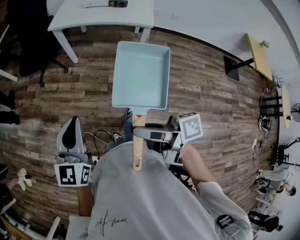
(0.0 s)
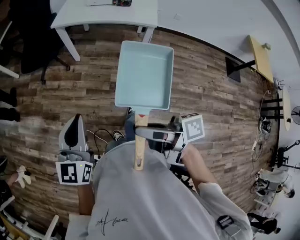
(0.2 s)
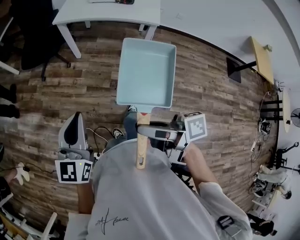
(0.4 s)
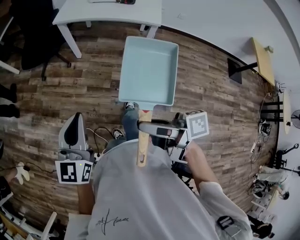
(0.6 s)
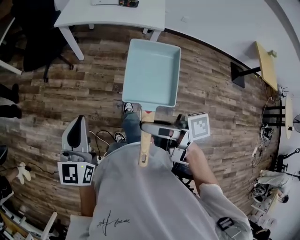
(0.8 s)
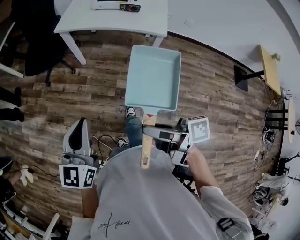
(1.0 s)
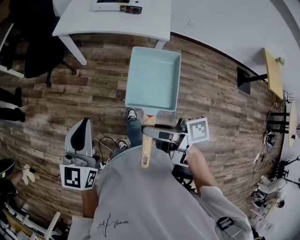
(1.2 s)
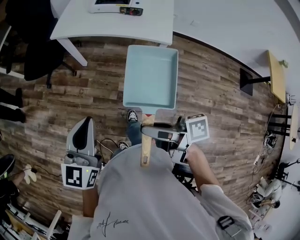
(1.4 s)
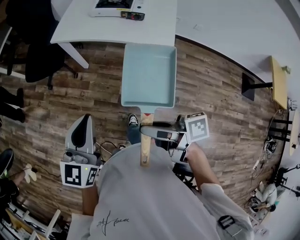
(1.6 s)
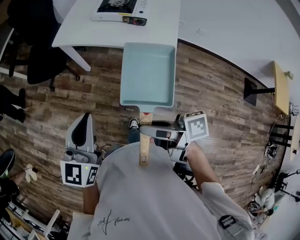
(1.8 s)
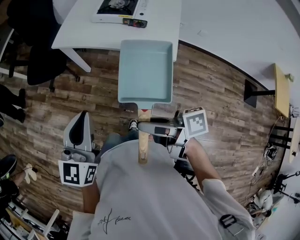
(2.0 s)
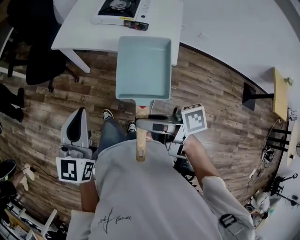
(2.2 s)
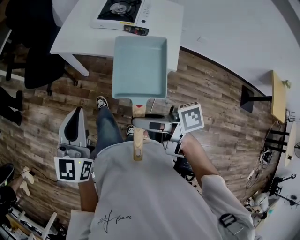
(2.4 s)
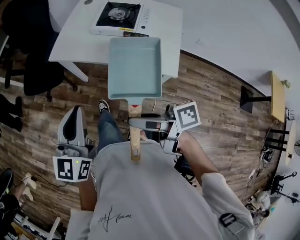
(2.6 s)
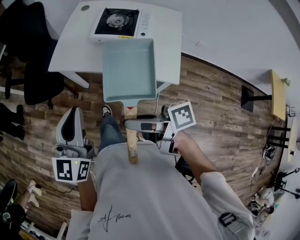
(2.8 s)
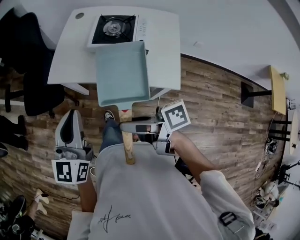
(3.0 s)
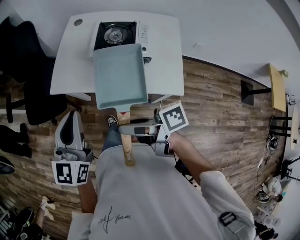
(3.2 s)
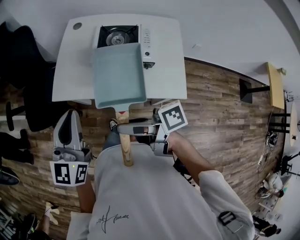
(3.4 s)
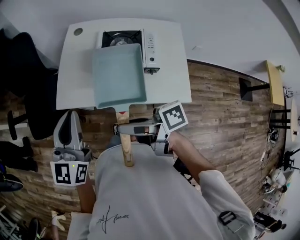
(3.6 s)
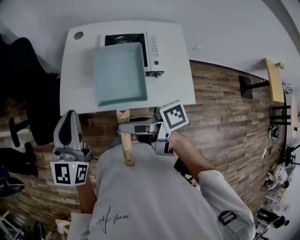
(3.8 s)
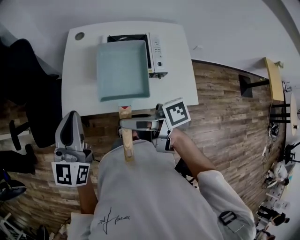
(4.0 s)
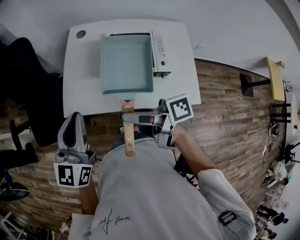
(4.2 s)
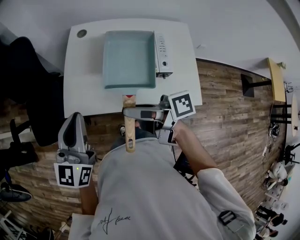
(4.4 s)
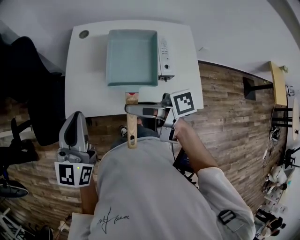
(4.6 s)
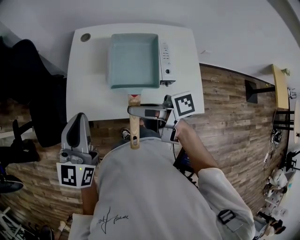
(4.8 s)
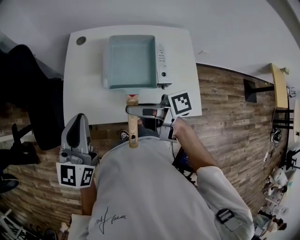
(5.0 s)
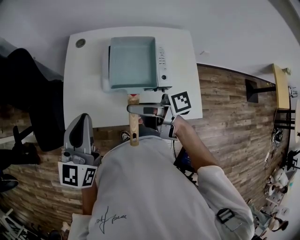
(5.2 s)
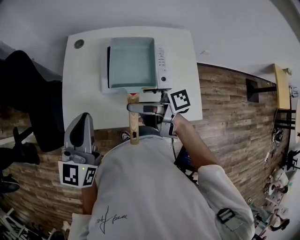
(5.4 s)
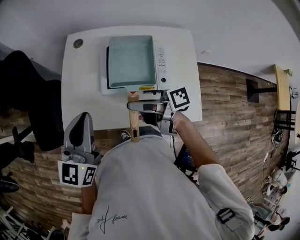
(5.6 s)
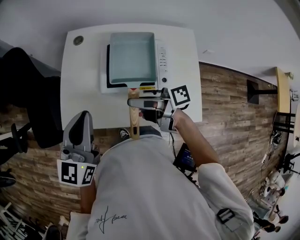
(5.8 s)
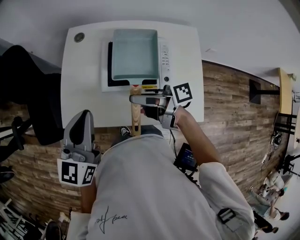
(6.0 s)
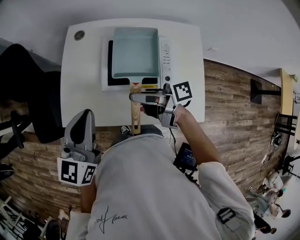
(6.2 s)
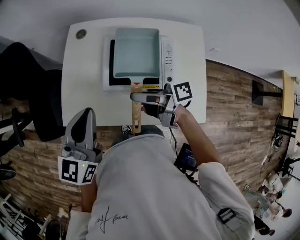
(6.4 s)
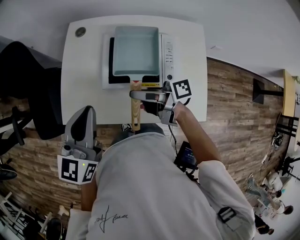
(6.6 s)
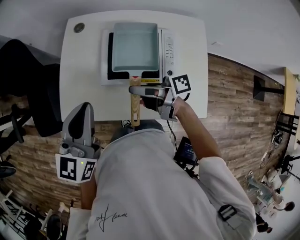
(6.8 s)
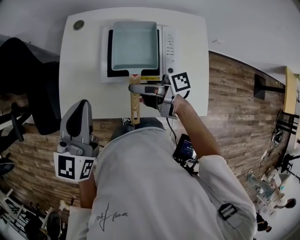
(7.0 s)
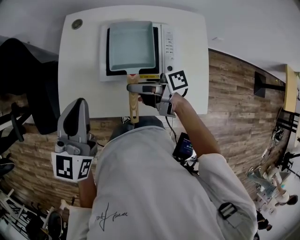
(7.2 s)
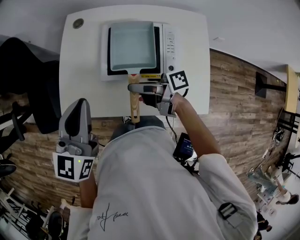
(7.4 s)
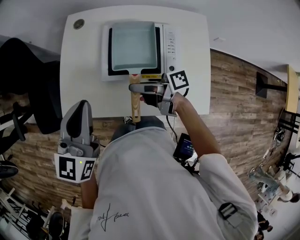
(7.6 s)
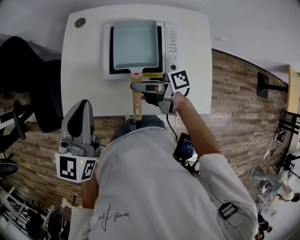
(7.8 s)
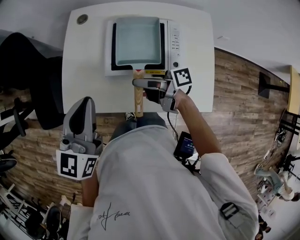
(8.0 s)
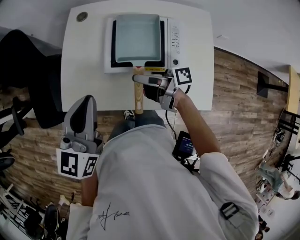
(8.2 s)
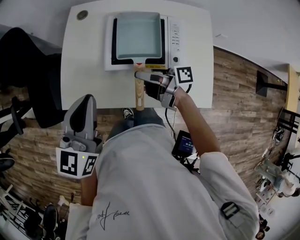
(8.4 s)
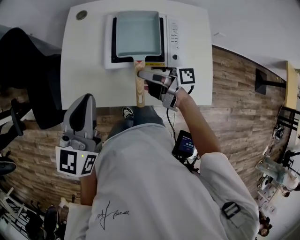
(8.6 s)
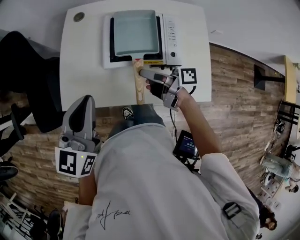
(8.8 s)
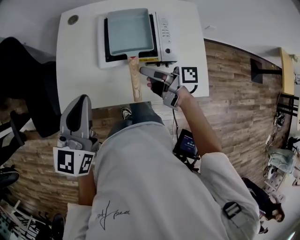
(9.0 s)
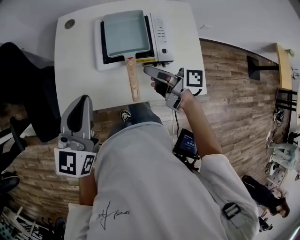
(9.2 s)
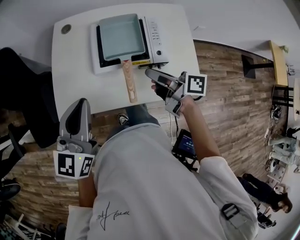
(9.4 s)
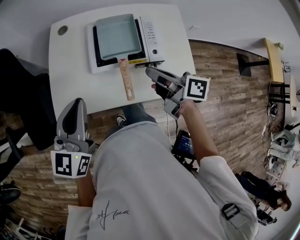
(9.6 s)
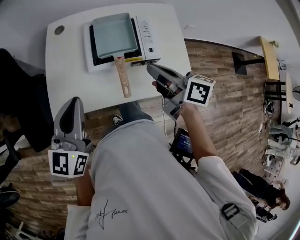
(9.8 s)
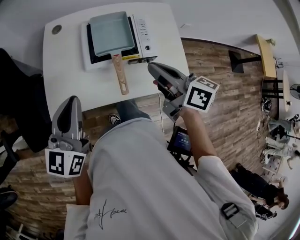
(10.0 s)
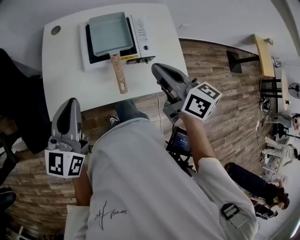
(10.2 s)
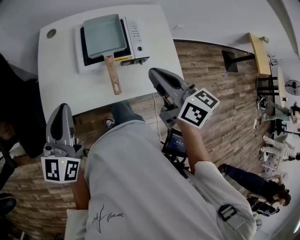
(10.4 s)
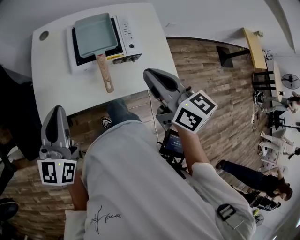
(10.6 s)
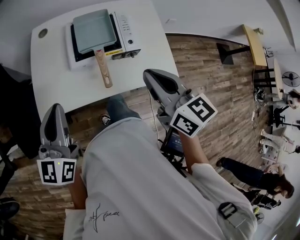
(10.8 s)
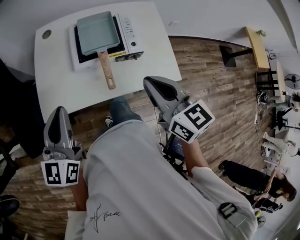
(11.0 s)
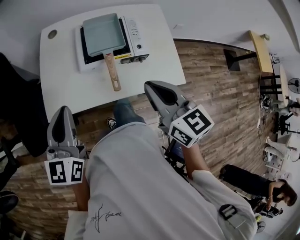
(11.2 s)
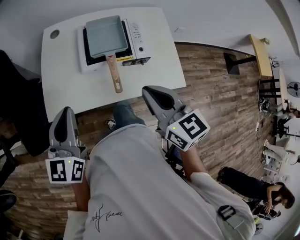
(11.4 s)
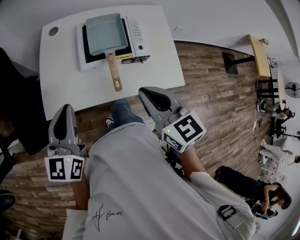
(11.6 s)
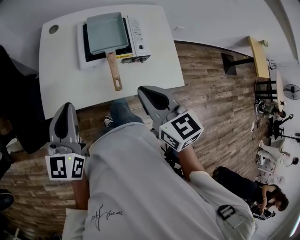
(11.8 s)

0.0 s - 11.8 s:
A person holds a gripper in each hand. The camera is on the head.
0.0 s - 1.4 s: Both grippers move forward and to the right, approximately 20 cm.
1.4 s - 3.0 s: The grippers both shift forward by some 30 cm.
3.0 s - 4.4 s: Both grippers travel together forward, roughly 20 cm.
4.4 s - 6.0 s: The right gripper goes about 20 cm to the right, forward and downward, while the left gripper goes about 15 cm to the right and forward.
6.0 s - 7.4 s: The right gripper goes about 5 cm downward.
7.4 s - 8.8 s: There are only small adjustments of the grippers.
8.8 s - 10.4 s: The right gripper travels upward and backward by some 20 cm, turns by some 60 degrees, and closes.
10.4 s - 11.8 s: The right gripper goes roughly 5 cm to the left, and turns by roughly 20 degrees.

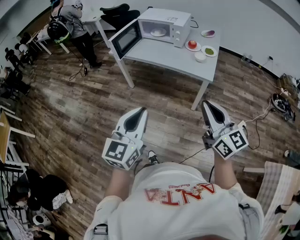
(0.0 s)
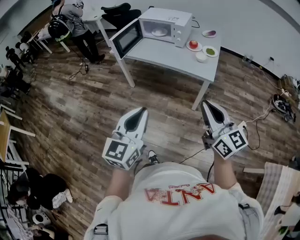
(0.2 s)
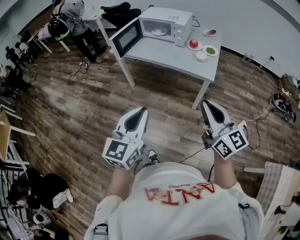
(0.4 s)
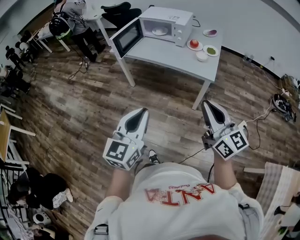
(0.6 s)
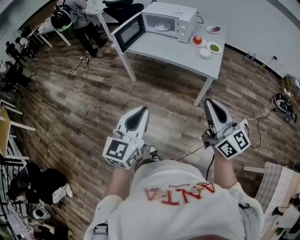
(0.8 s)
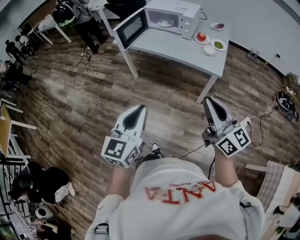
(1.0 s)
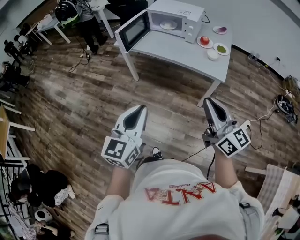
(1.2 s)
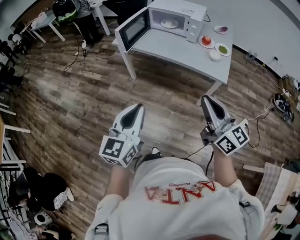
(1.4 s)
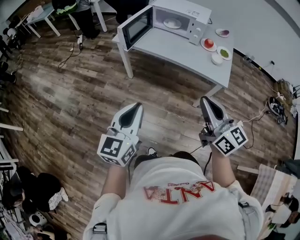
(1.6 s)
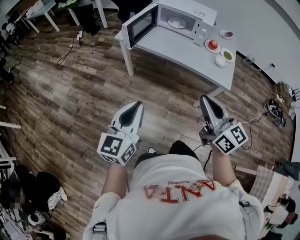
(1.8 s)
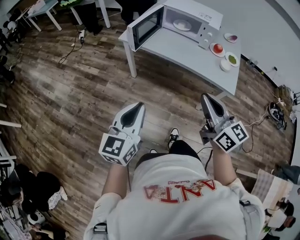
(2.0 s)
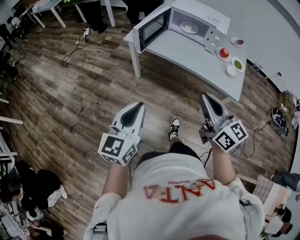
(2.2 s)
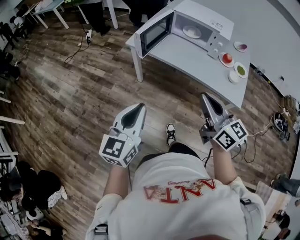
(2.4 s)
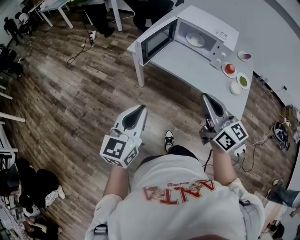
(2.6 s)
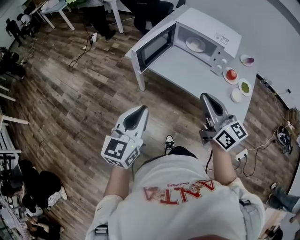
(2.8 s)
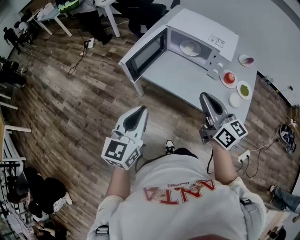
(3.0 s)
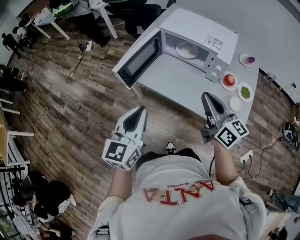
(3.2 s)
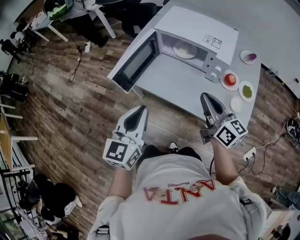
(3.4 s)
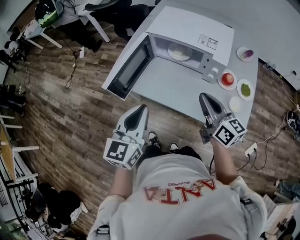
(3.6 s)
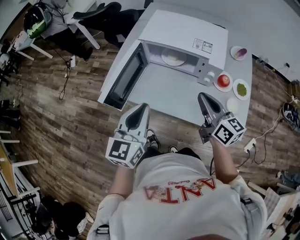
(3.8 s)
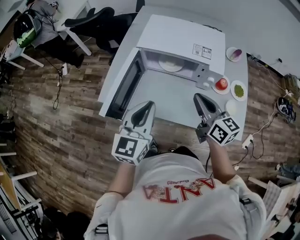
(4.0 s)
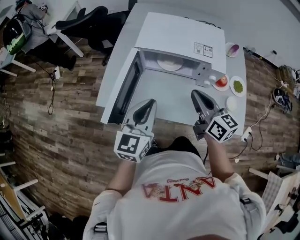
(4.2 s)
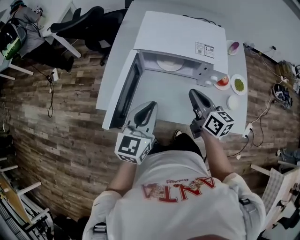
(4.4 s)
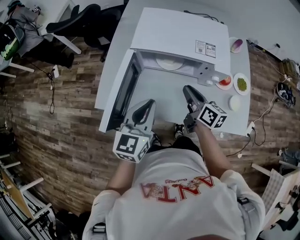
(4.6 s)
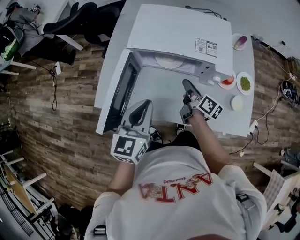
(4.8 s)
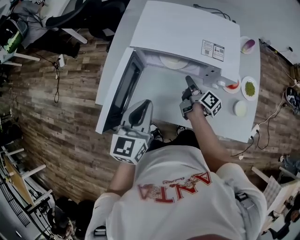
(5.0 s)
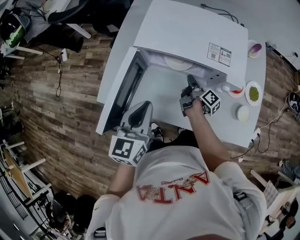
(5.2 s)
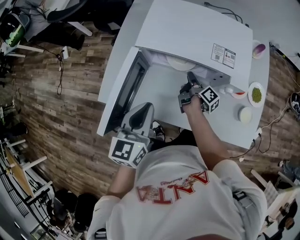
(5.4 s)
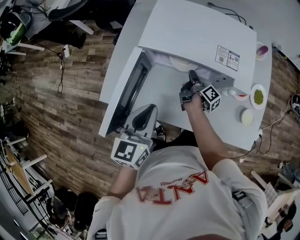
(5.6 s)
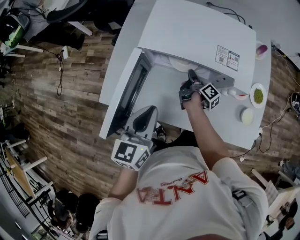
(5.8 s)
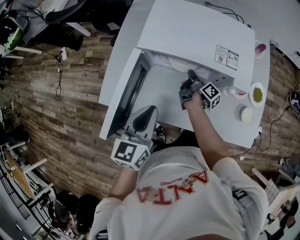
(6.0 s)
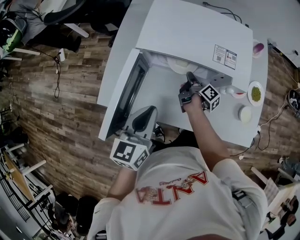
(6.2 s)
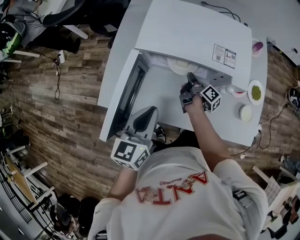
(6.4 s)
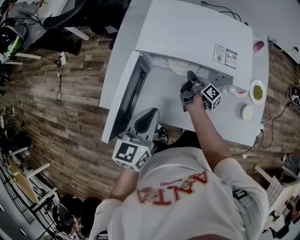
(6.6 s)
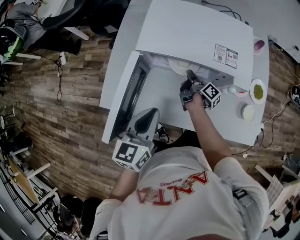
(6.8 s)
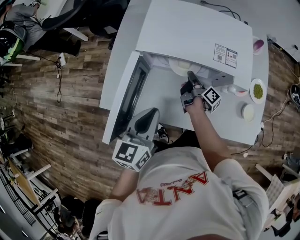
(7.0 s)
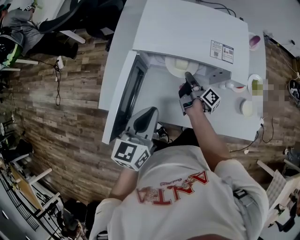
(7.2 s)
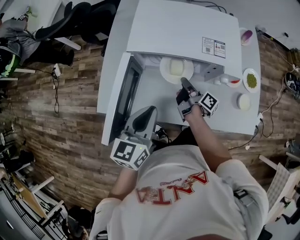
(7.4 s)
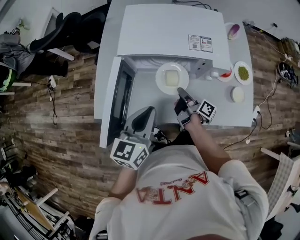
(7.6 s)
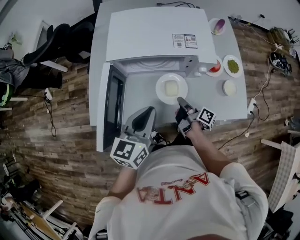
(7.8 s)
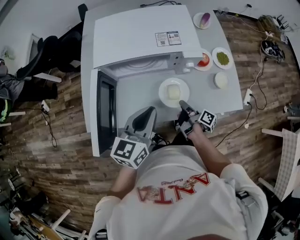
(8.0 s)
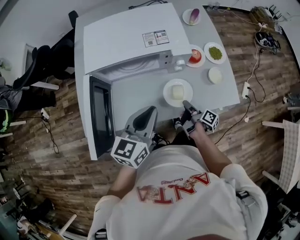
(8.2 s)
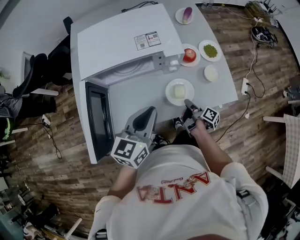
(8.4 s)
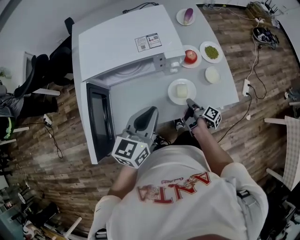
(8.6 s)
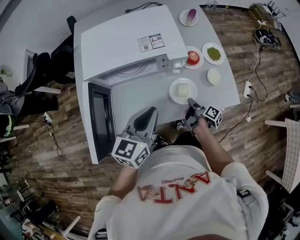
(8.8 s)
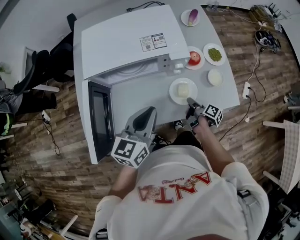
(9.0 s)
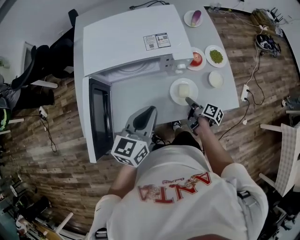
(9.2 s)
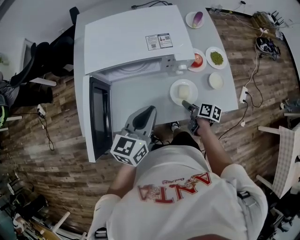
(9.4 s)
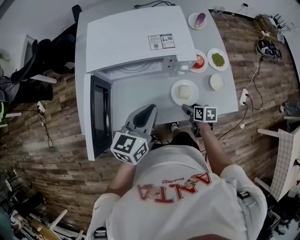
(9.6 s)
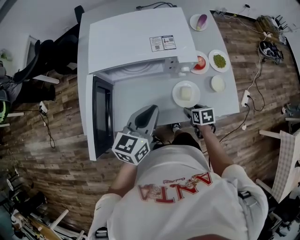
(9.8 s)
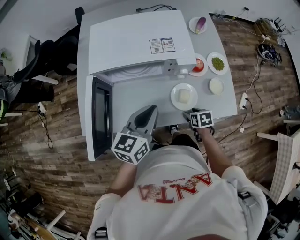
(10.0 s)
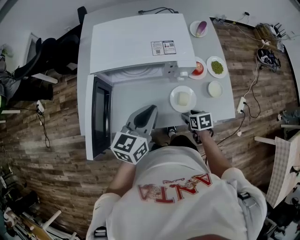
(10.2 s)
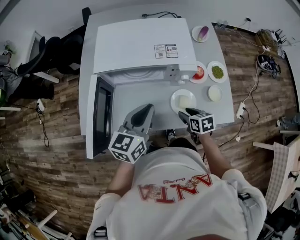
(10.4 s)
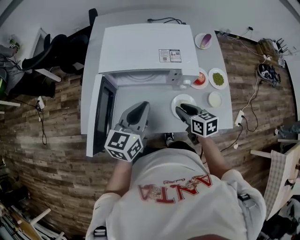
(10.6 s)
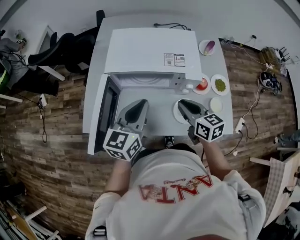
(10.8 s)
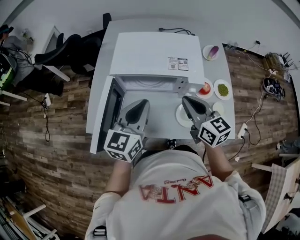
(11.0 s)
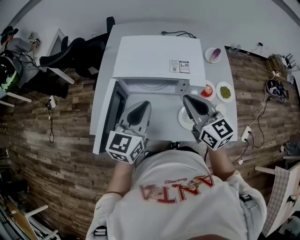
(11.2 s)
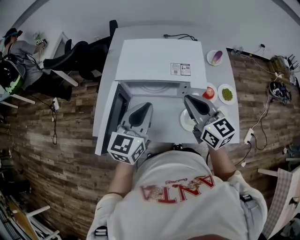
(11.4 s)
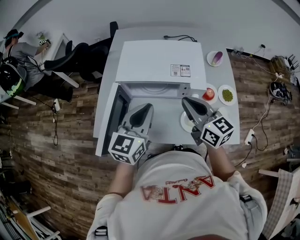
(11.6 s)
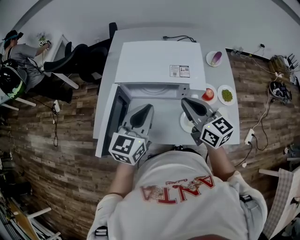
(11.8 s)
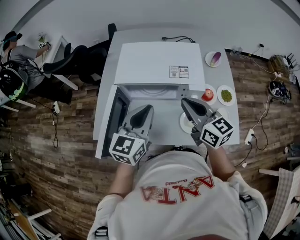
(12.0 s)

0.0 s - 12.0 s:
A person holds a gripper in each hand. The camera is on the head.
0.0 s - 1.6 s: The two grippers go some 20 cm to the left and forward.
1.6 s - 3.0 s: The two grippers go roughly 30 cm forward.
3.0 s - 4.4 s: The left gripper moves forward, about 30 cm, and turns by roughly 20 degrees. The right gripper moves forward and downward, some 25 cm, and turns by about 30 degrees.
4.4 s - 6.0 s: The right gripper is displaced downward and forward by some 25 cm, and rotates around the line of its fingers by roughly 60 degrees, clockwise from behind. The left gripper moves roughly 5 cm.
6.0 s - 7.6 s: The right gripper moves backward, roughly 10 cm.
7.6 s - 9.0 s: The left gripper moves to the right, about 10 cm; the right gripper moves to the right, about 20 cm, and swivels approximately 20 degrees.
9.0 s - 10.4 s: The right gripper shifts about 10 cm upward and to the left, rolls counterclockwise, seen from behind, by some 70 degrees, and opens its fingers.
10.4 s - 12.0 s: The left gripper heads upward, covering about 10 cm, while the right gripper travels upward by approximately 25 cm, tilts its fingers roughly 40 degrees upward, and closes up.
